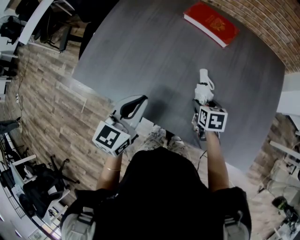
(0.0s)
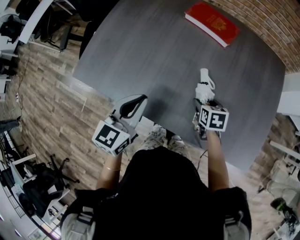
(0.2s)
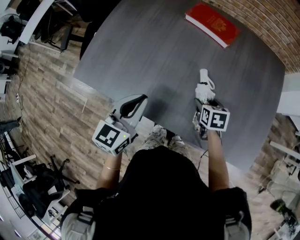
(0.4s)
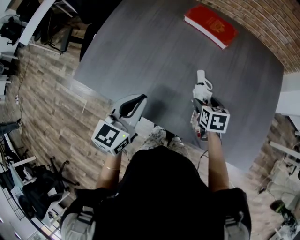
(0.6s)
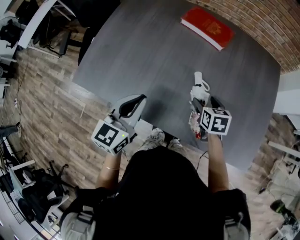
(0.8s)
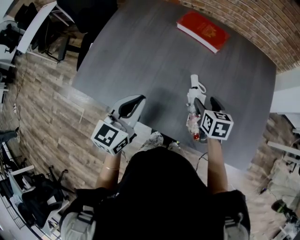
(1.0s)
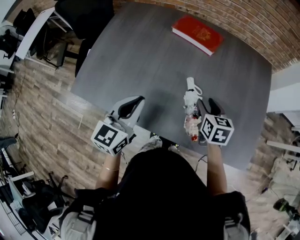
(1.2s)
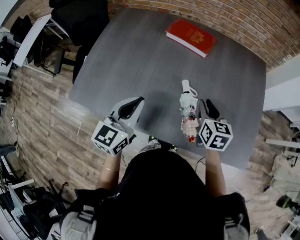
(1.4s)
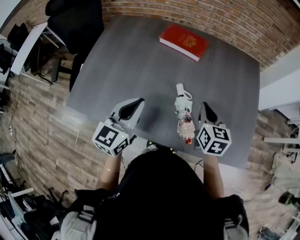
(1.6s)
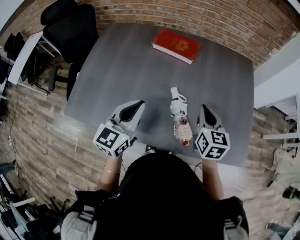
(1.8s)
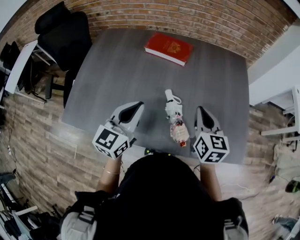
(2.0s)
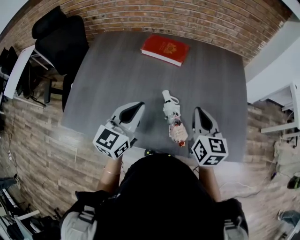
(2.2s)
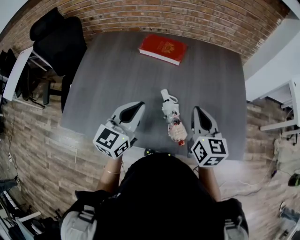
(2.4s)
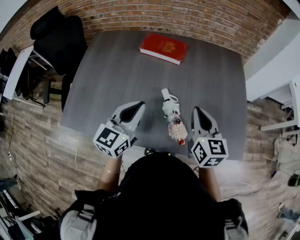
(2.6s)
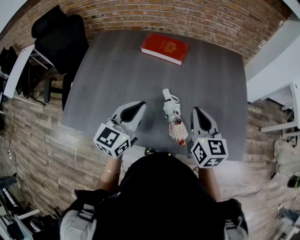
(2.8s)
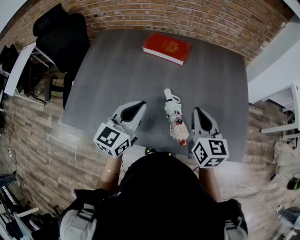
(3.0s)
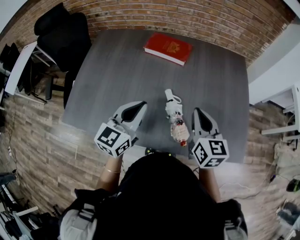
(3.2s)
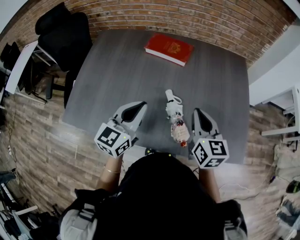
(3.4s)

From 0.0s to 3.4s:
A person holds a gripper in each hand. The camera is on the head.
From 0.0s to 1.6s: The right gripper shifts roughly 20 cm upward, swivels some 30 degrees, and closes its fingers. The left gripper goes some 5 cm upward.
From 1.6s to 3.4s: The right gripper is displaced upward by approximately 5 cm, while the left gripper ends up approximately 5 cm from where it was.

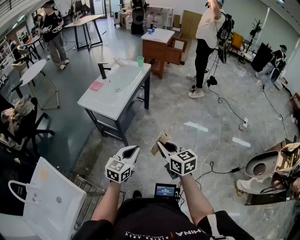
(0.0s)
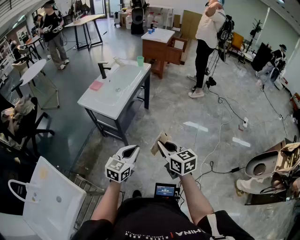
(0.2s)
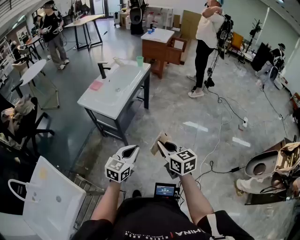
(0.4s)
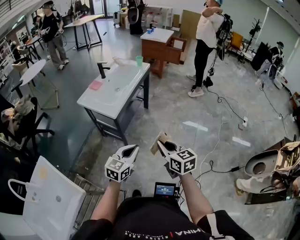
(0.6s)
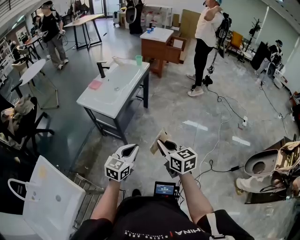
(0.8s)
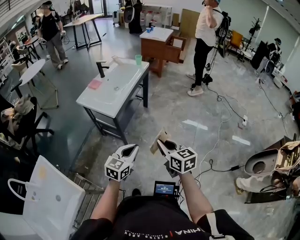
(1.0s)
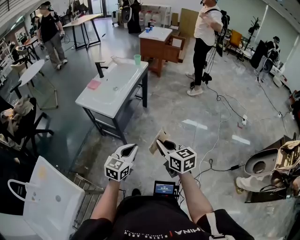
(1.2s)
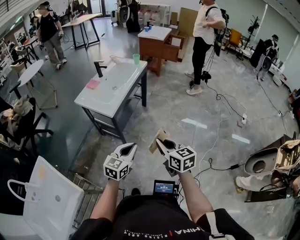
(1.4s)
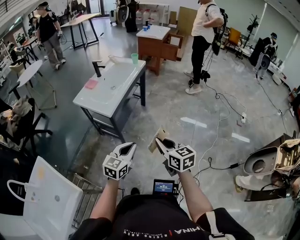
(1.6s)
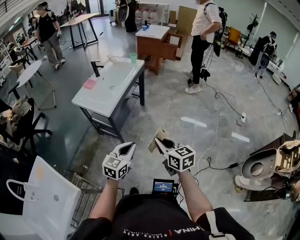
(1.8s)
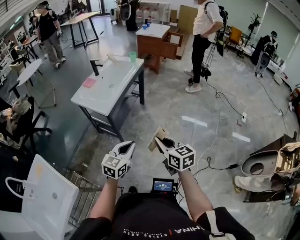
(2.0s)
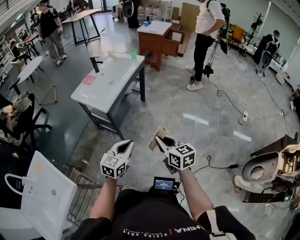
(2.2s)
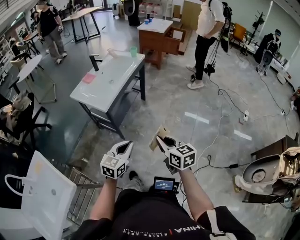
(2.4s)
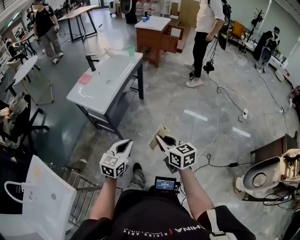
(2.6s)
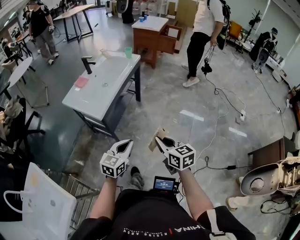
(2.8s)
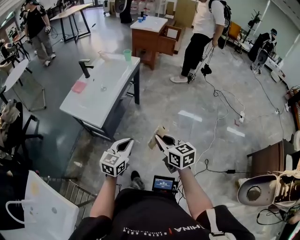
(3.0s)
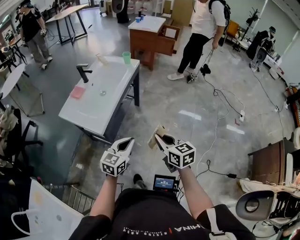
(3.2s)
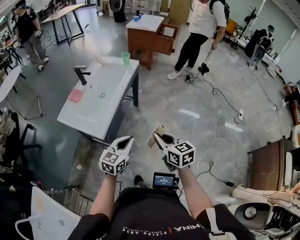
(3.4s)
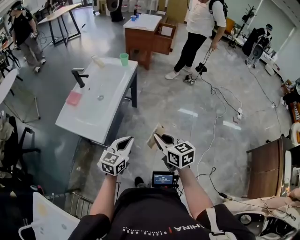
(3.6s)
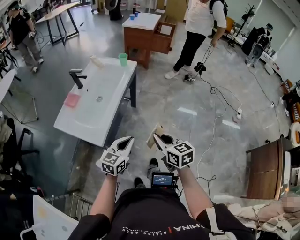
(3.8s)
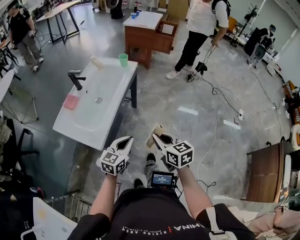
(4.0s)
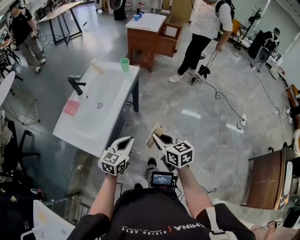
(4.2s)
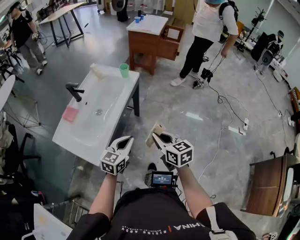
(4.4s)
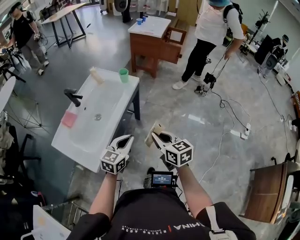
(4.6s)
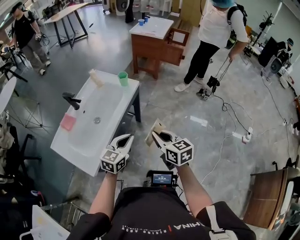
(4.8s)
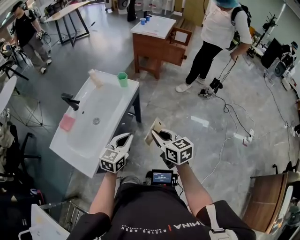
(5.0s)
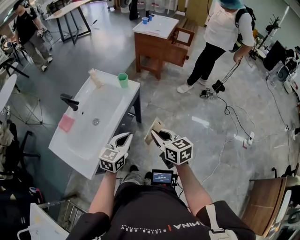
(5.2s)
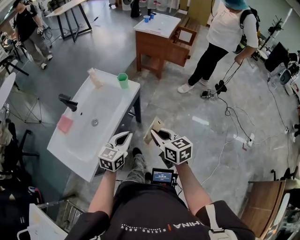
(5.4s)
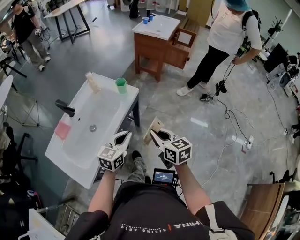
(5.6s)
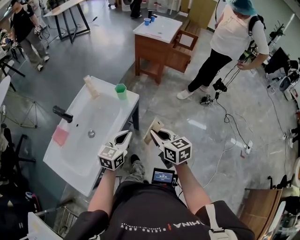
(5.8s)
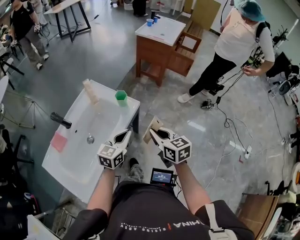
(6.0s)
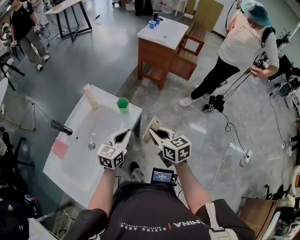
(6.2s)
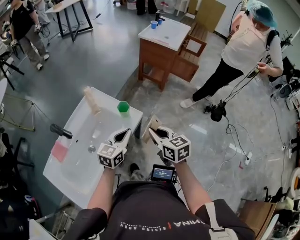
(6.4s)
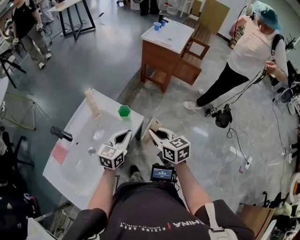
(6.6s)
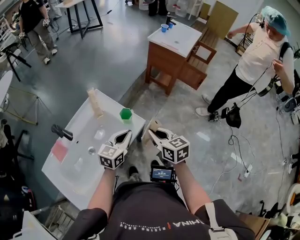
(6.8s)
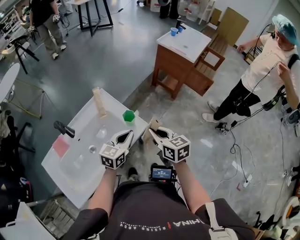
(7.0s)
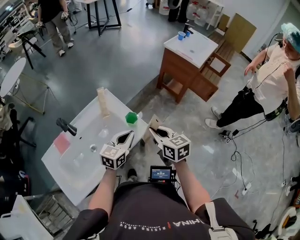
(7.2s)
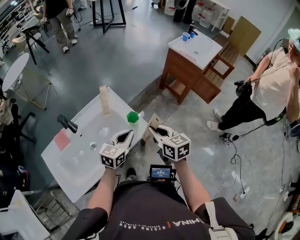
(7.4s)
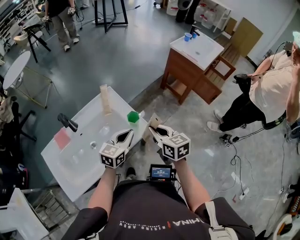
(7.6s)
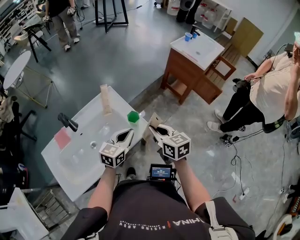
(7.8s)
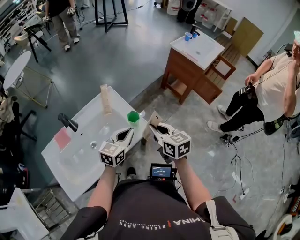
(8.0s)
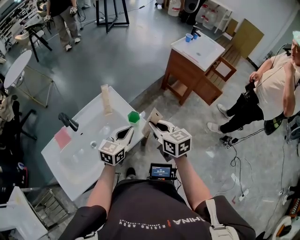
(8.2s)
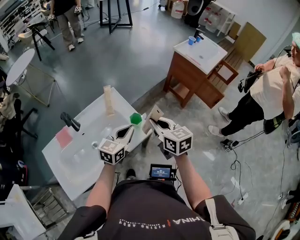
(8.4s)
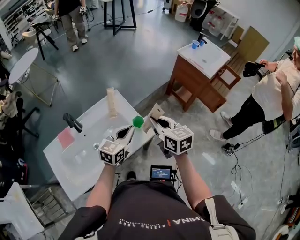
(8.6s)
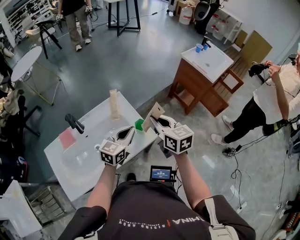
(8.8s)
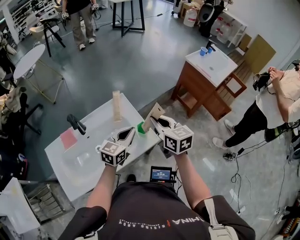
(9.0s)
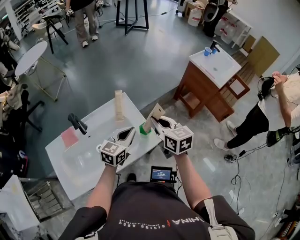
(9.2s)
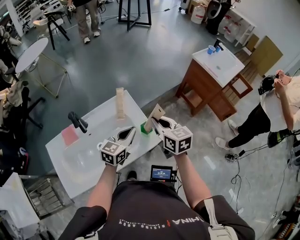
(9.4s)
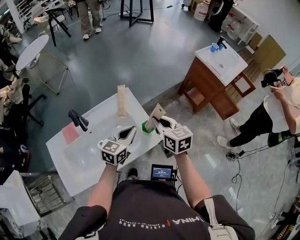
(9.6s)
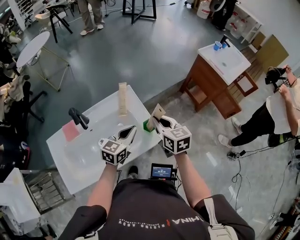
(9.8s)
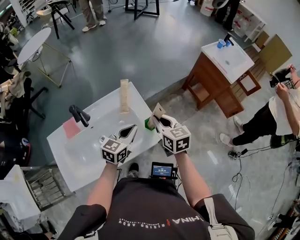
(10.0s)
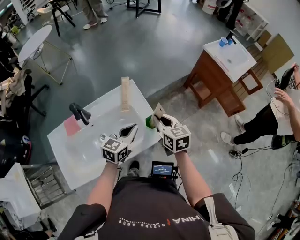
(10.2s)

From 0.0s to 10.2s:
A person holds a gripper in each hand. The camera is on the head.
From 0.0s to 1.4s: The grippers move only a little.
From 1.4s to 3.0s: The two grippers go roughly 15 cm forward.
From 3.0s to 4.4s: The two grippers go roughly 25 cm forward.
From 4.4s to 5.8s: The grippers both shift forward by some 25 cm.
From 5.8s to 7.2s: The grippers both shift forward by about 20 cm.
From 7.2s to 8.8s: The right gripper is displaced forward and upward by some 10 cm. The left gripper shifts by some 5 cm.
From 8.8s to 10.2s: The right gripper goes approximately 10 cm downward. The left gripper ends up approximately 5 cm from where it was.

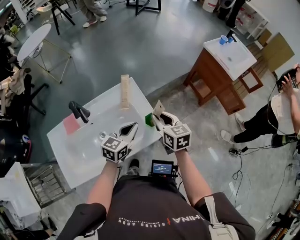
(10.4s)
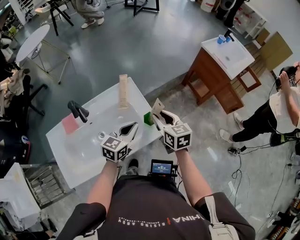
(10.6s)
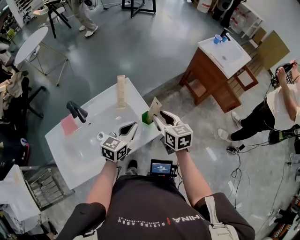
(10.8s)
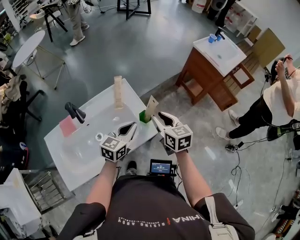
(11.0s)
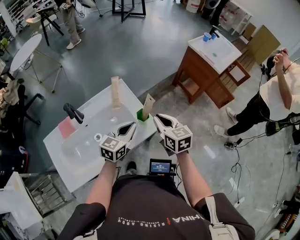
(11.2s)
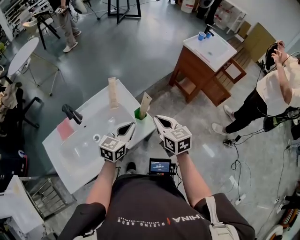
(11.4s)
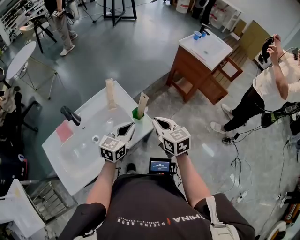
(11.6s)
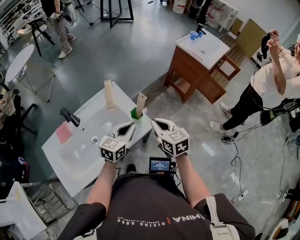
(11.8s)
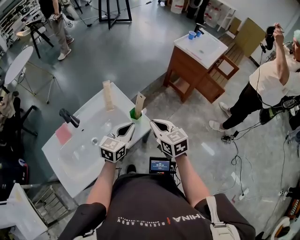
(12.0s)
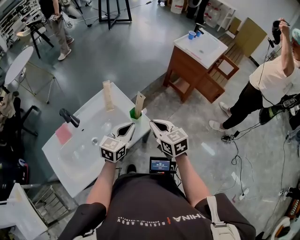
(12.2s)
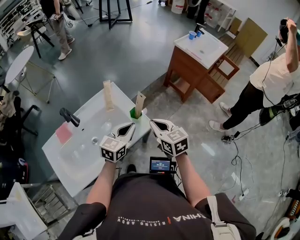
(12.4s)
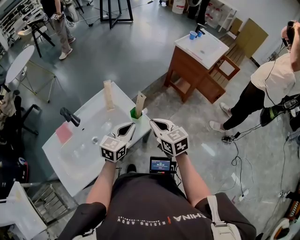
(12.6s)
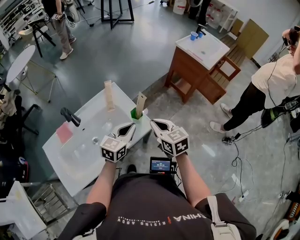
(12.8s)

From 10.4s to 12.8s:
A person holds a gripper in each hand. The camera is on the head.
From 10.4s to 11.6s: The left gripper ends up approximately 5 cm from where it was, while the right gripper travels backward by some 10 cm, and closes its fingers.
From 11.6s to 12.8s: The grippers make only small movements.

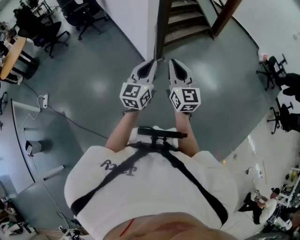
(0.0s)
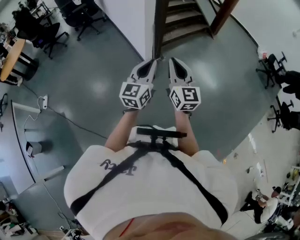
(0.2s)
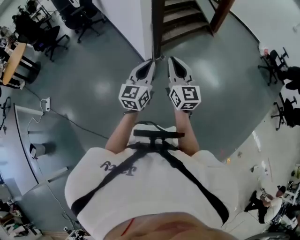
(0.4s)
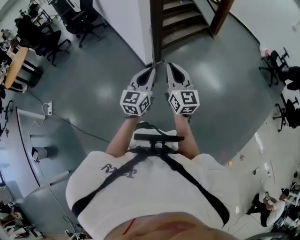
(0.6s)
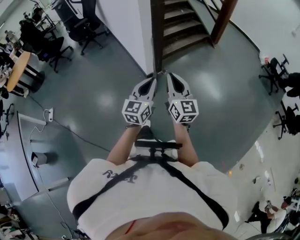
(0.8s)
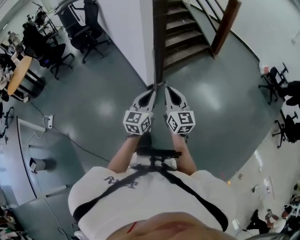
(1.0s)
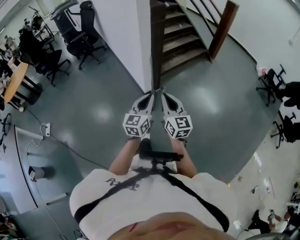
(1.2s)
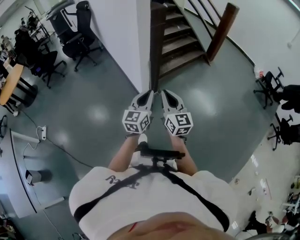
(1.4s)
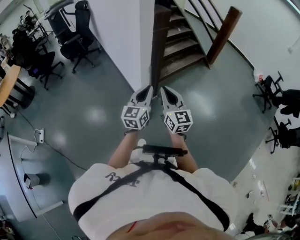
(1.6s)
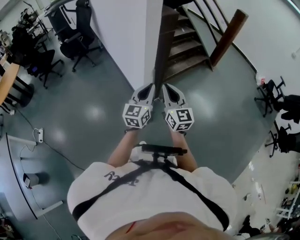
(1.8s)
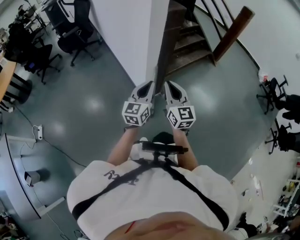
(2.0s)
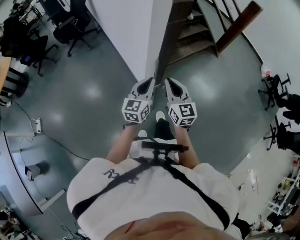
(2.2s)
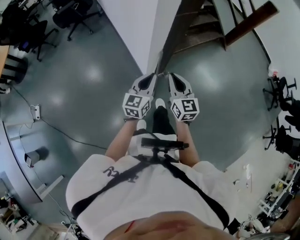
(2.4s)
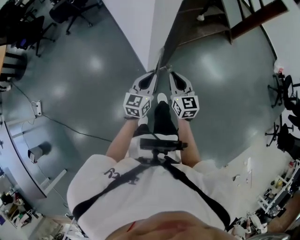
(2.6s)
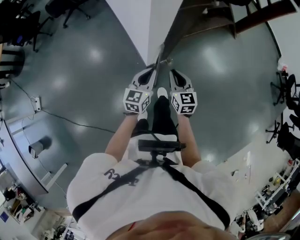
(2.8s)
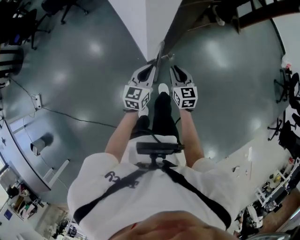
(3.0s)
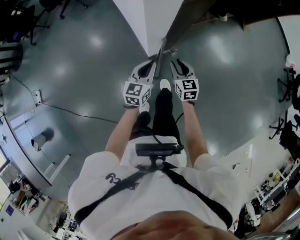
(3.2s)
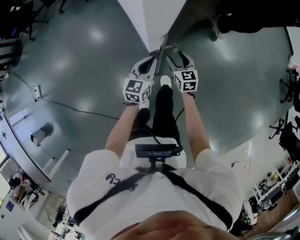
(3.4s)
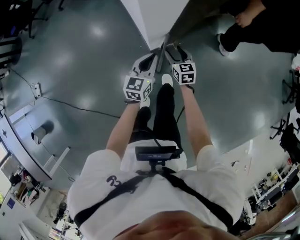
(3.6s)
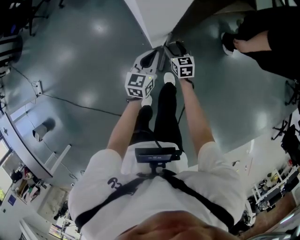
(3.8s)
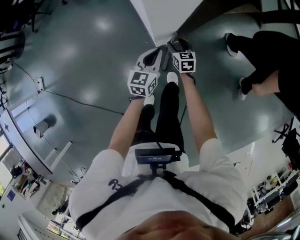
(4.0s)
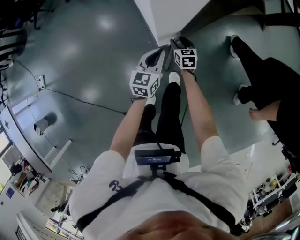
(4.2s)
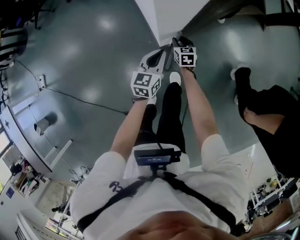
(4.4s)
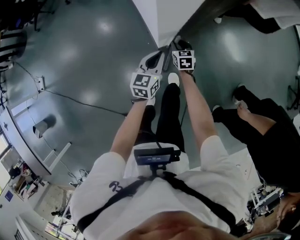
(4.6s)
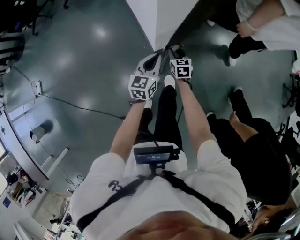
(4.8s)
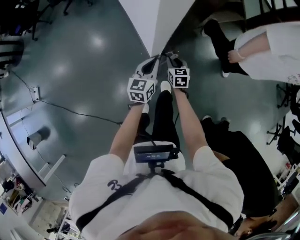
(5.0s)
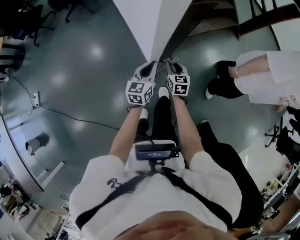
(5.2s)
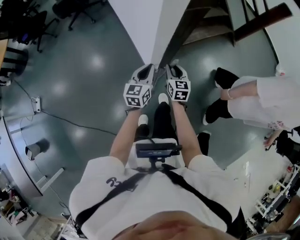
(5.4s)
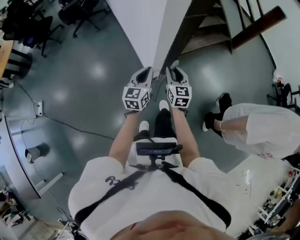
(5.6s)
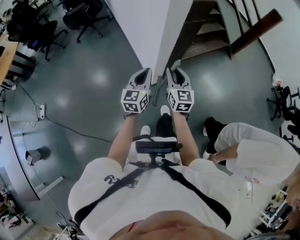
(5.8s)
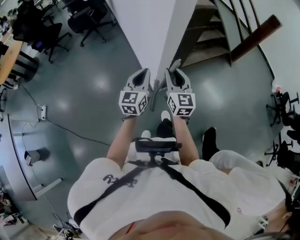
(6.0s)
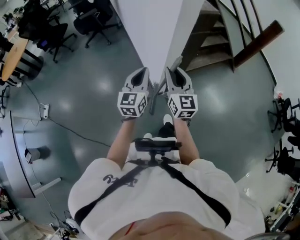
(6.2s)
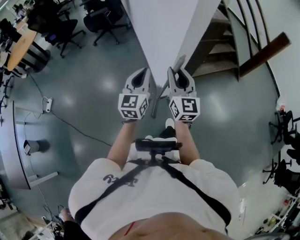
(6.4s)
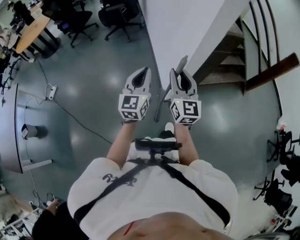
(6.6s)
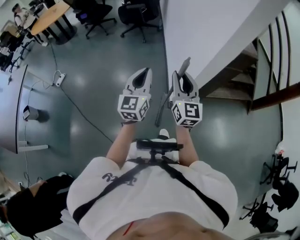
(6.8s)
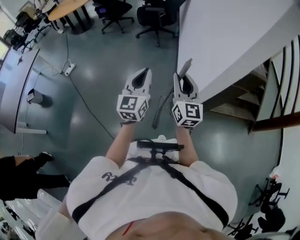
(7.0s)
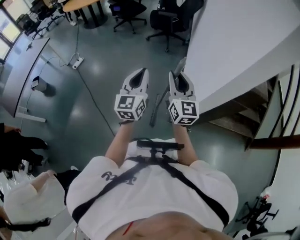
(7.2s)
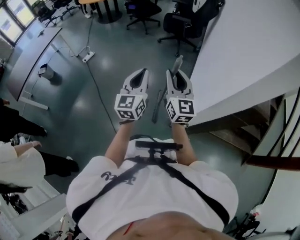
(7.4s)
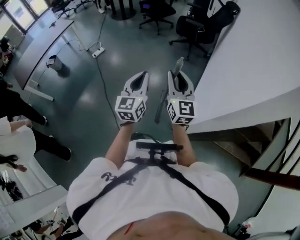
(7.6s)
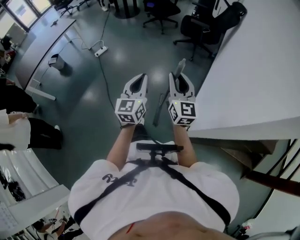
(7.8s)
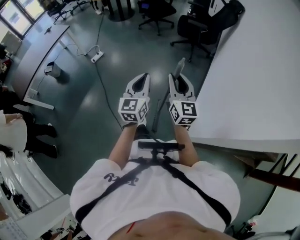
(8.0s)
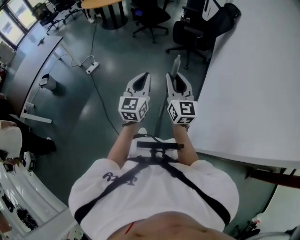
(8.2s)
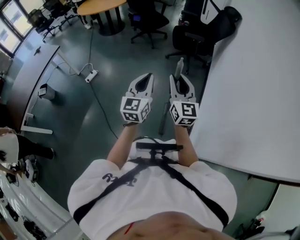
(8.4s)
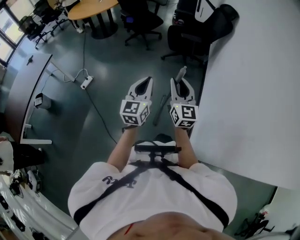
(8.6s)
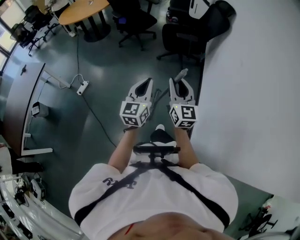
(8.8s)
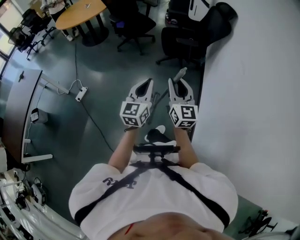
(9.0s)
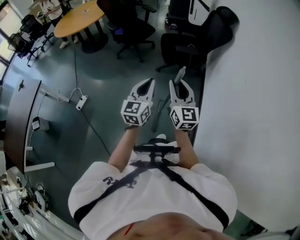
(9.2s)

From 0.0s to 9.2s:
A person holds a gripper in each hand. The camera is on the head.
From 0.0s to 1.6s: Both grippers move forward, about 25 cm.
From 1.6s to 3.0s: The two grippers go some 40 cm forward and downward. The right gripper points its fingers roughly 30 degrees further downward. The left gripper swivels some 20 degrees.
From 3.0s to 4.6s: The right gripper heads downward and forward, covering some 25 cm, and opens, then closes once more; the left gripper heads downward, covering about 10 cm.
From 4.6s to 6.2s: The right gripper shifts some 50 cm upward, and tips its fingers upward by some 50 degrees. Meanwhile the left gripper is displaced upward by some 35 cm, and swivels about 30 degrees.
From 6.2s to 7.6s: The left gripper shifts by approximately 25 cm, and turns by some 50 degrees, while the right gripper moves approximately 30 cm, and rotates approximately 50 degrees.
From 7.6s to 9.2s: The pair of grippers is taken forward, roughly 60 cm.
